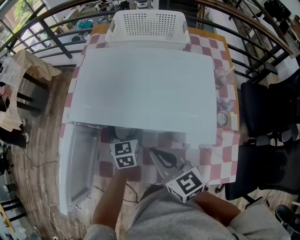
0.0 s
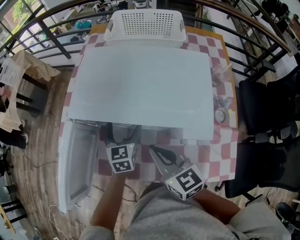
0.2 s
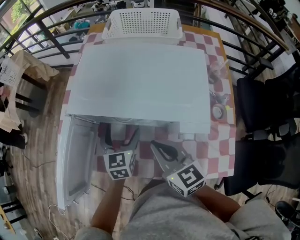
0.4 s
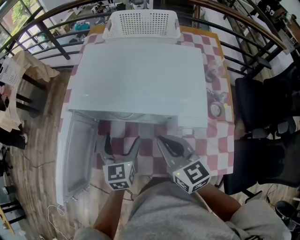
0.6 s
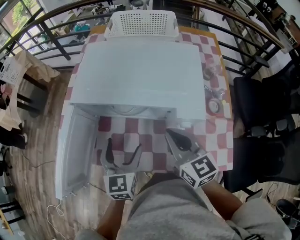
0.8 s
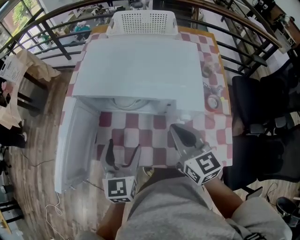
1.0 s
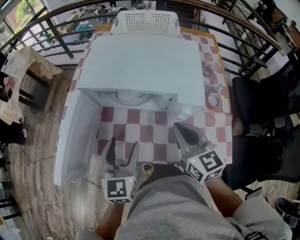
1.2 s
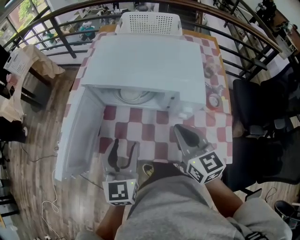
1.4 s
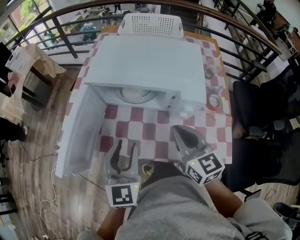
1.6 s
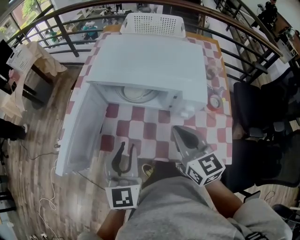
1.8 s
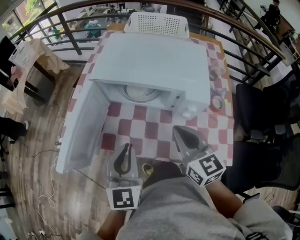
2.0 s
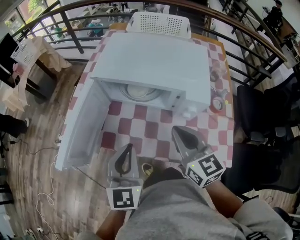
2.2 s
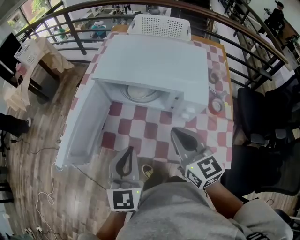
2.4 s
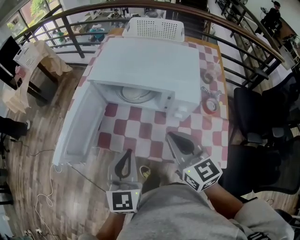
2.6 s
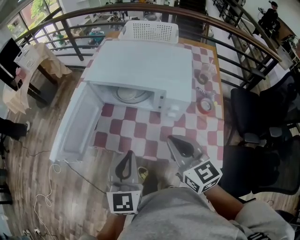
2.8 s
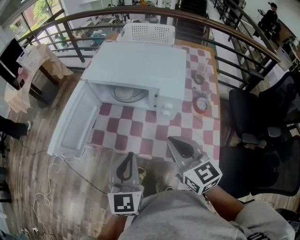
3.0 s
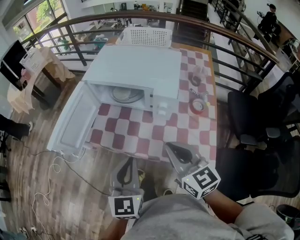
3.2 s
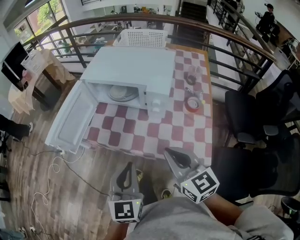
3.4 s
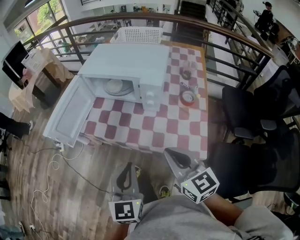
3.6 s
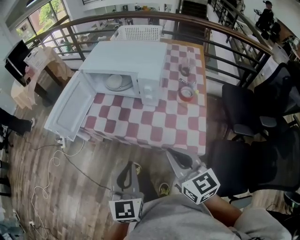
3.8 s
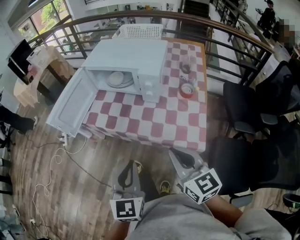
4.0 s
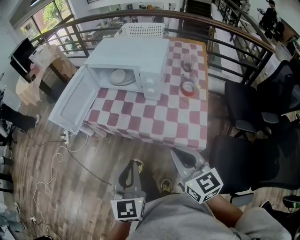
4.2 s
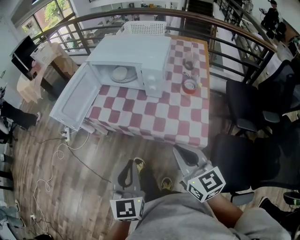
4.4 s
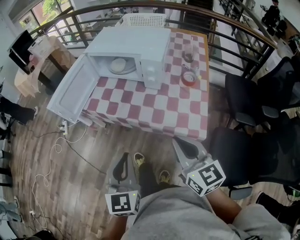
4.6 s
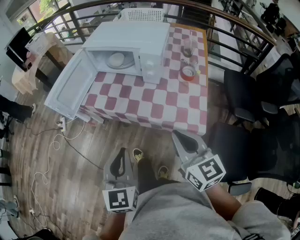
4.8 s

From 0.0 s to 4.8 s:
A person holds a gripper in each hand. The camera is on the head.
From 0.0 s to 1.6 s: The left gripper travels backward and upward by about 30 cm, and closes its fingers. The right gripper heads backward, upward and to the right, covering roughly 10 cm.
From 1.6 s to 3.2 s: The right gripper shifts some 10 cm backward; the left gripper goes about 15 cm backward and to the right.
From 3.2 s to 4.8 s: Both grippers travel together backward, about 15 cm.

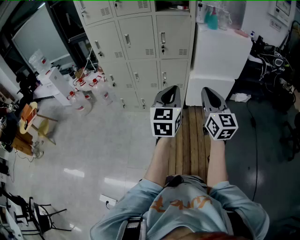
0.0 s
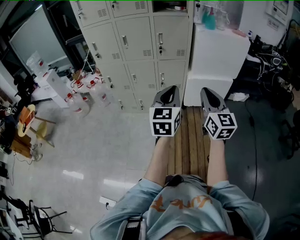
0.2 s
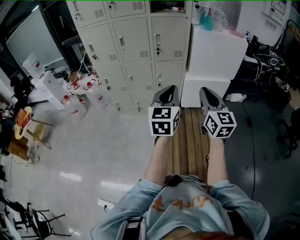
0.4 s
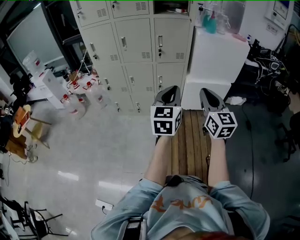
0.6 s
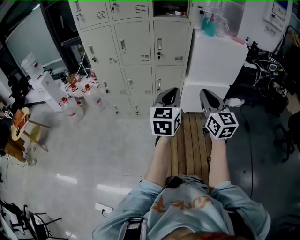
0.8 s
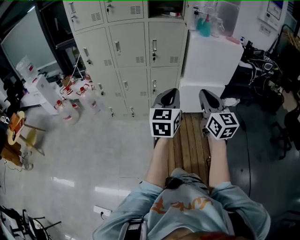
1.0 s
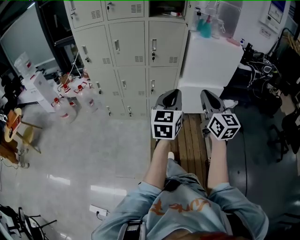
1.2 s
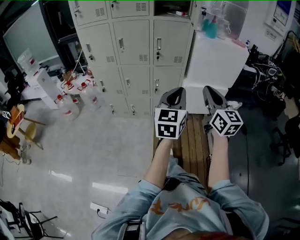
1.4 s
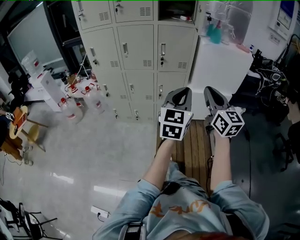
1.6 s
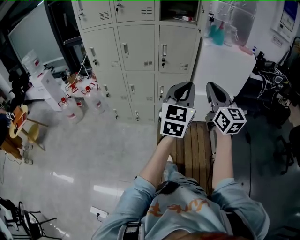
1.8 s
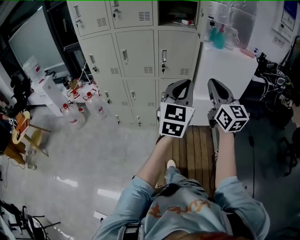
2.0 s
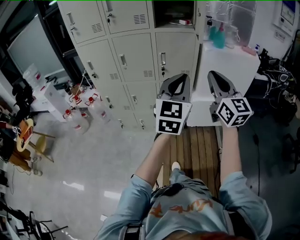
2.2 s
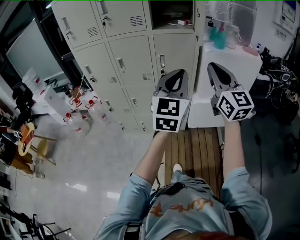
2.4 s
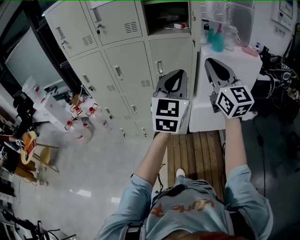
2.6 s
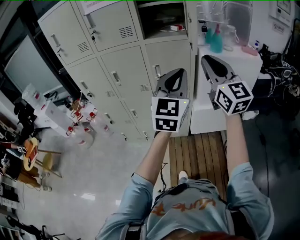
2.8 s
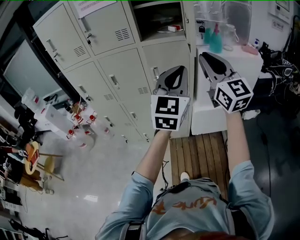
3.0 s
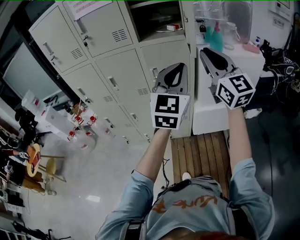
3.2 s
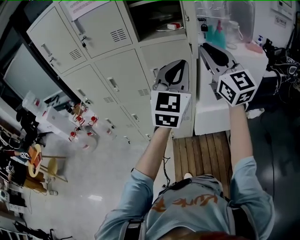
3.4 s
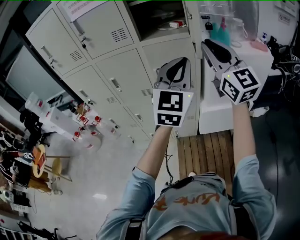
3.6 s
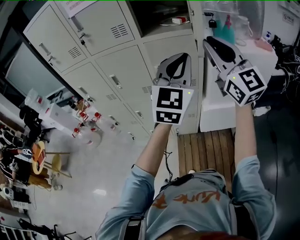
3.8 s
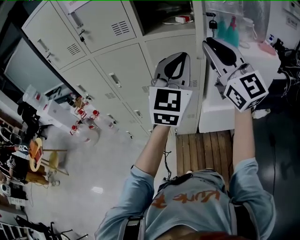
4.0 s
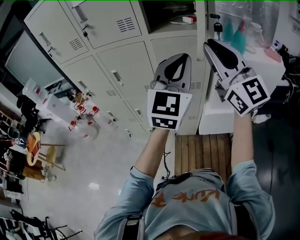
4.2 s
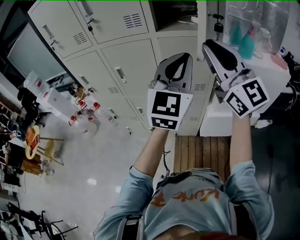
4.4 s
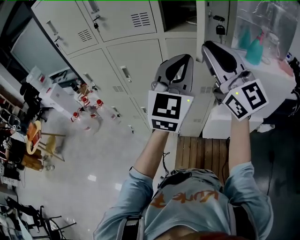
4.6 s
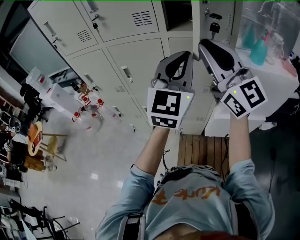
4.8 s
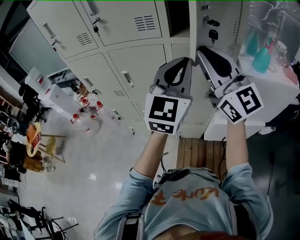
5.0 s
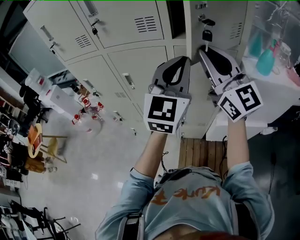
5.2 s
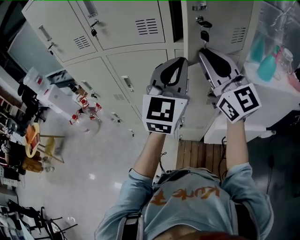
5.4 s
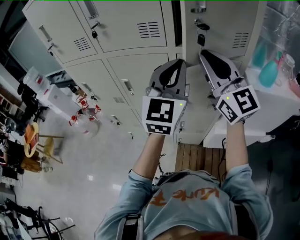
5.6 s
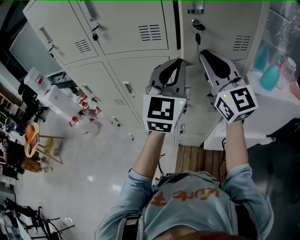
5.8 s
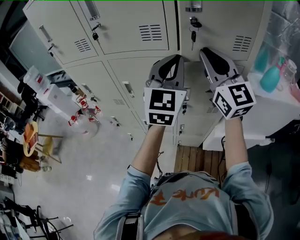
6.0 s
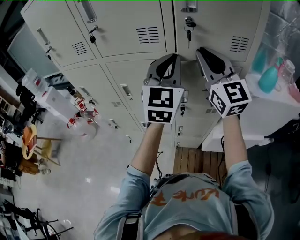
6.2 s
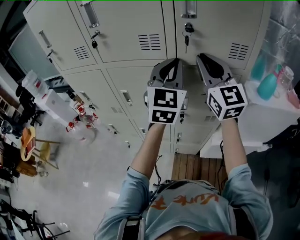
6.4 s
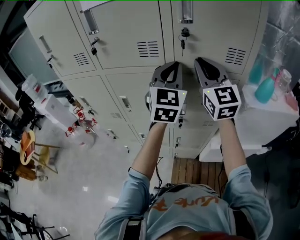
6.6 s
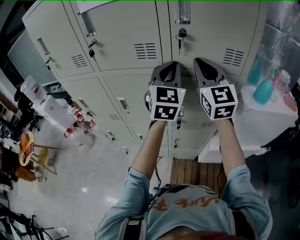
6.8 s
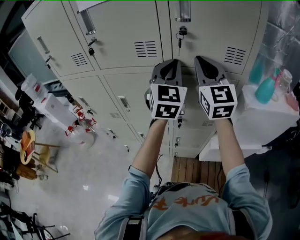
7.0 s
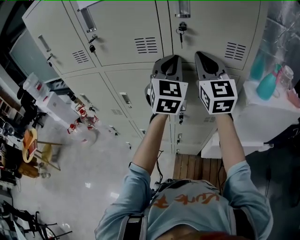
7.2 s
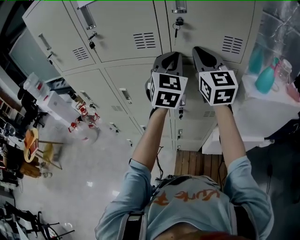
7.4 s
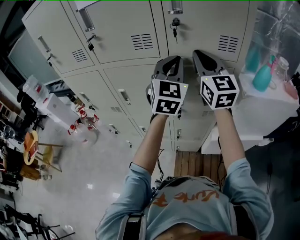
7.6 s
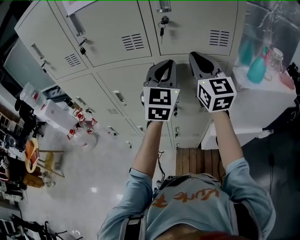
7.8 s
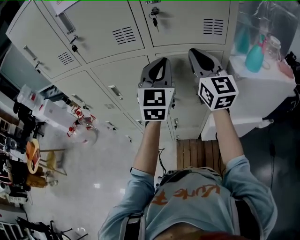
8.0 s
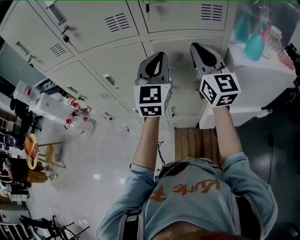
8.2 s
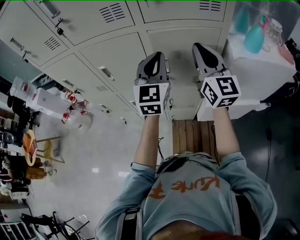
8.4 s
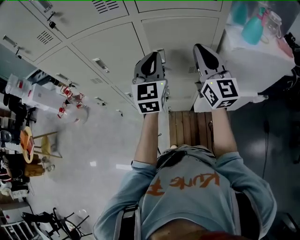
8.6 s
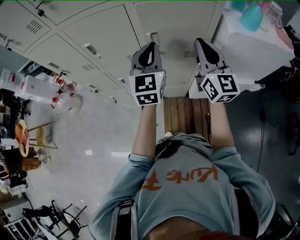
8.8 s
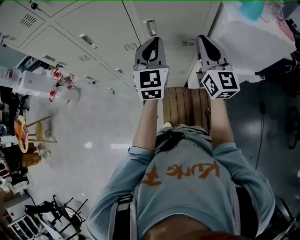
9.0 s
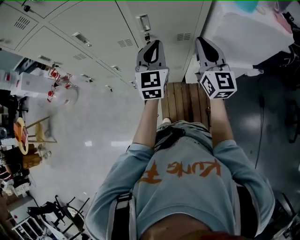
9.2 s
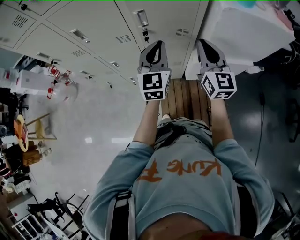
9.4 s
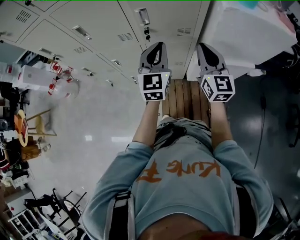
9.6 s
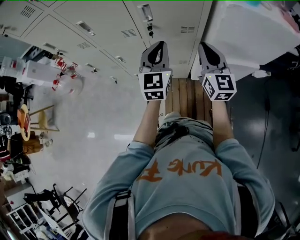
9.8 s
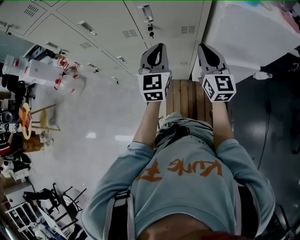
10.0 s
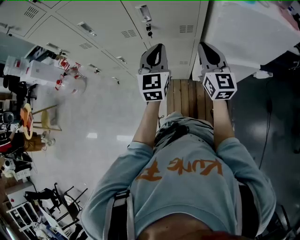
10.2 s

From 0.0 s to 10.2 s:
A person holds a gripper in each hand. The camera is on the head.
From 0.0 s to 1.4 s: Both grippers move forward, about 5 cm.
From 1.4 s to 3.0 s: Both grippers travel together forward and upward, approximately 30 cm. The left gripper swivels roughly 20 degrees.
From 3.0 s to 4.4 s: The left gripper moves forward, about 10 cm; the right gripper shifts some 10 cm forward and to the left.
From 4.4 s to 5.8 s: The left gripper travels forward and to the left by about 15 cm; the right gripper is displaced forward by some 15 cm.
From 5.8 s to 7.2 s: Both grippers travel together forward, about 10 cm.
From 7.2 s to 8.8 s: The right gripper travels downward, backward and to the right by roughly 20 cm, while the left gripper goes about 20 cm downward and backward.
From 8.8 s to 10.2 s: The right gripper heads downward and backward, covering some 15 cm. The left gripper goes roughly 15 cm downward, backward and to the right.

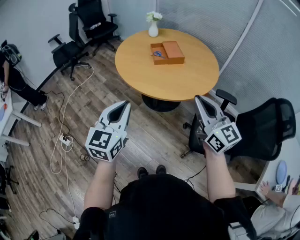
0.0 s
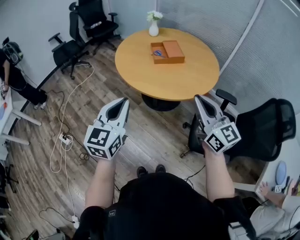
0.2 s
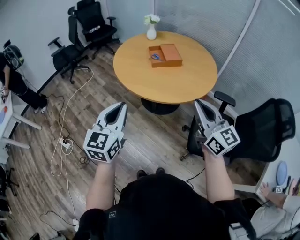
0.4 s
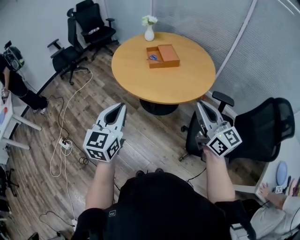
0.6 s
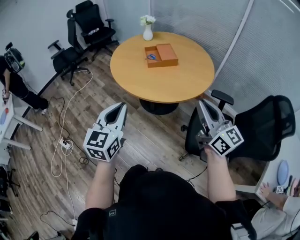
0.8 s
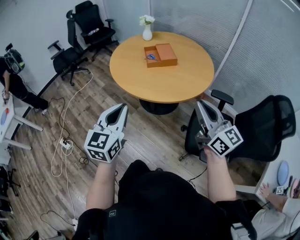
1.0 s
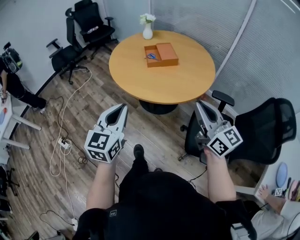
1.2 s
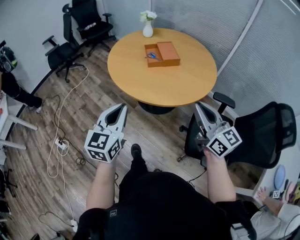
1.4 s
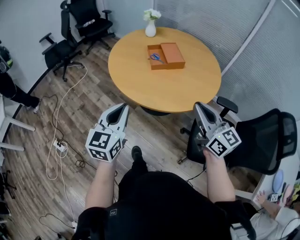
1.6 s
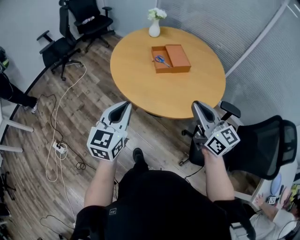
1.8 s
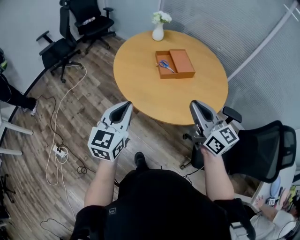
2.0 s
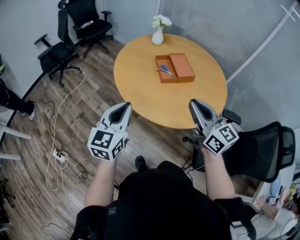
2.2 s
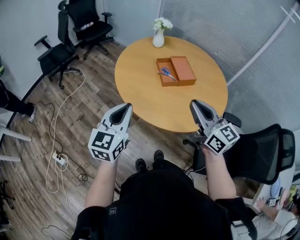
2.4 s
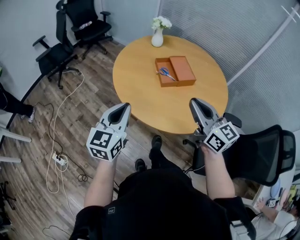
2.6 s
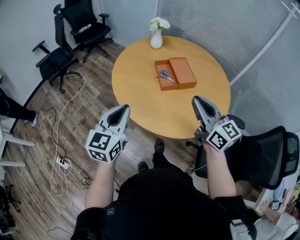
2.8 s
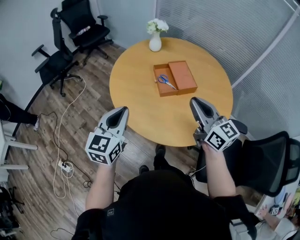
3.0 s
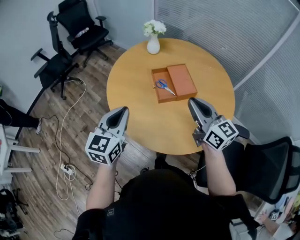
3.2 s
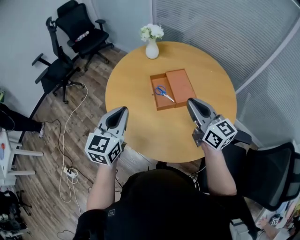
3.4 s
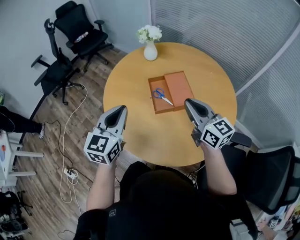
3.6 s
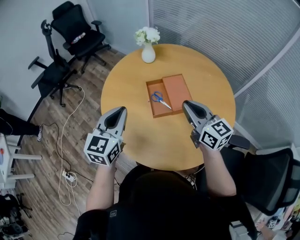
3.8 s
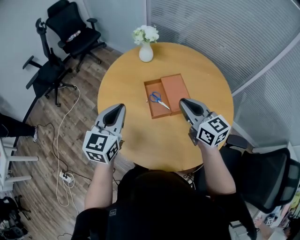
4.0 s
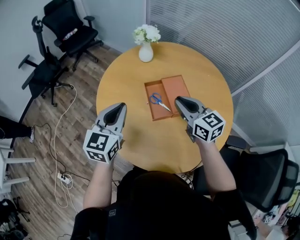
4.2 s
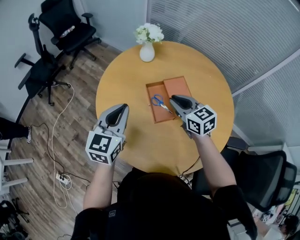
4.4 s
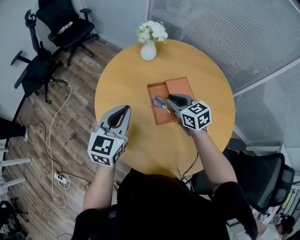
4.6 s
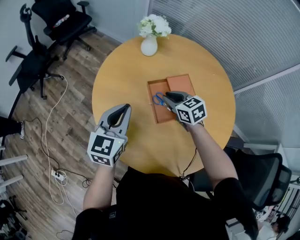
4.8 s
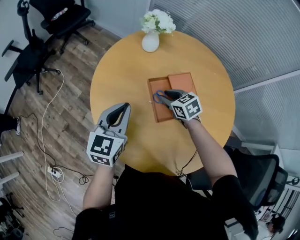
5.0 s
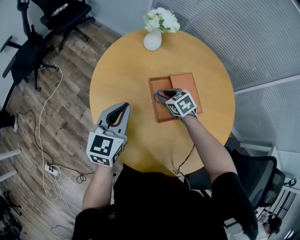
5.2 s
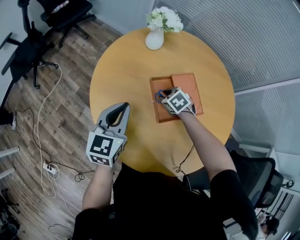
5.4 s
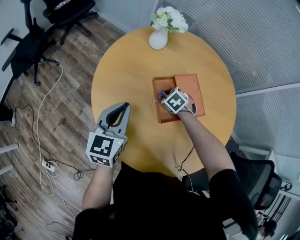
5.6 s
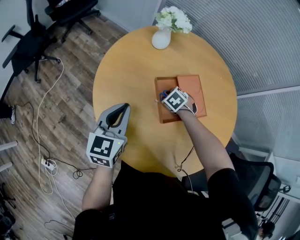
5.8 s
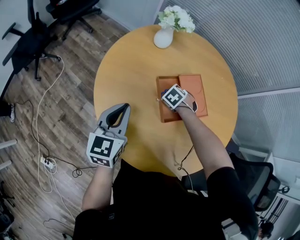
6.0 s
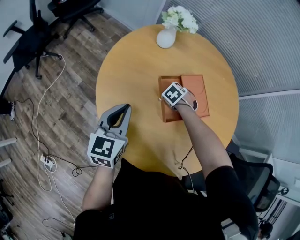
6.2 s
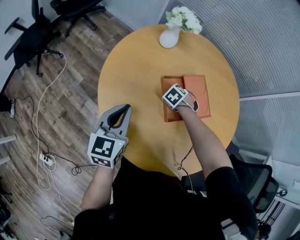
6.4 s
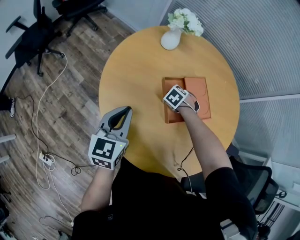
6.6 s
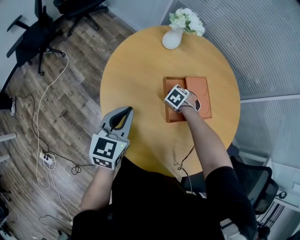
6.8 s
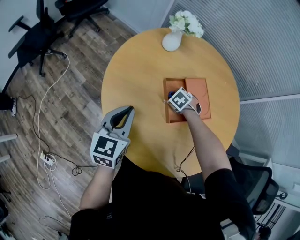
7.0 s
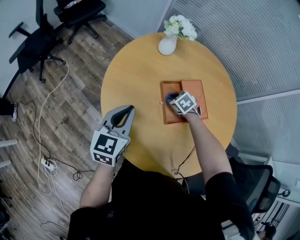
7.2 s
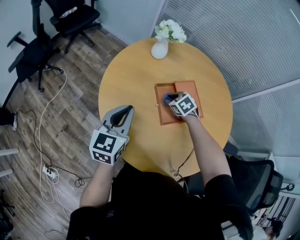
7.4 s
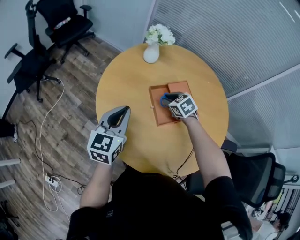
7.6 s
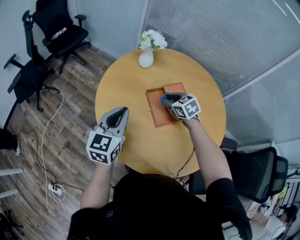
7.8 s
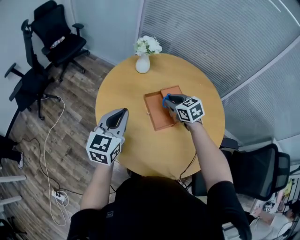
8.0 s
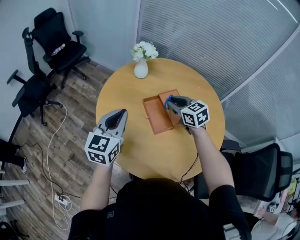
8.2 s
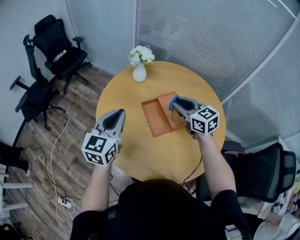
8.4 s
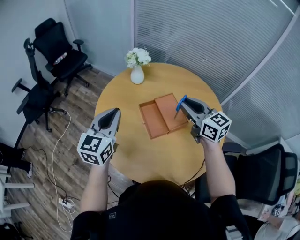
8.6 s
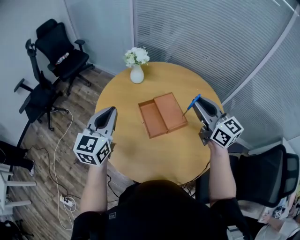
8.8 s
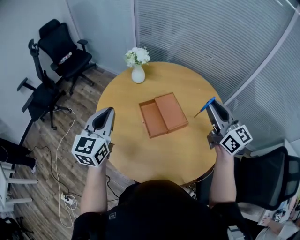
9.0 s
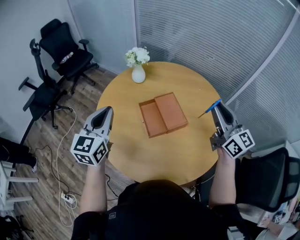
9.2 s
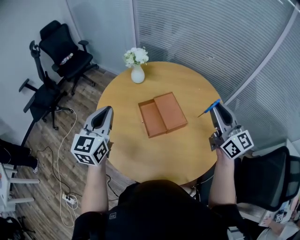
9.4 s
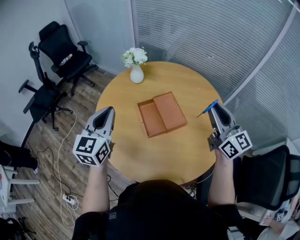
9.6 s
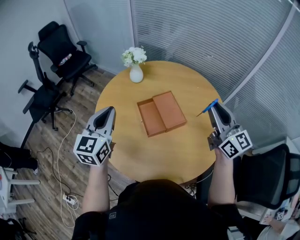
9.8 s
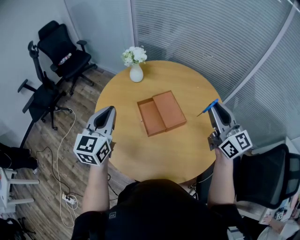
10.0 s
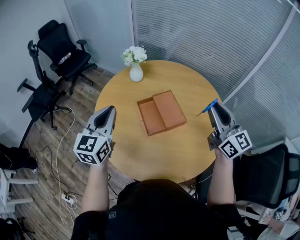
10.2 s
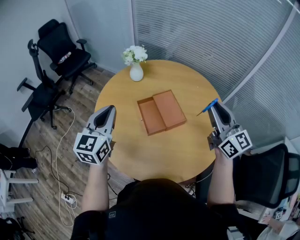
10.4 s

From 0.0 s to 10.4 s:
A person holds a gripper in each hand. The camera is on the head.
From 0.0 s to 1.4 s: The right gripper moves to the right, about 5 cm, while the left gripper is displaced forward by about 5 cm.
From 1.4 s to 3.0 s: Both grippers move forward, about 30 cm.
From 3.0 s to 4.4 s: The right gripper shifts roughly 30 cm forward and downward, and changes its angle by about 20 degrees; the left gripper travels forward by approximately 25 cm.
From 4.4 s to 6.0 s: The right gripper travels downward by roughly 25 cm, and tips its fingers downward by about 60 degrees. The left gripper is displaced downward by some 10 cm.
From 6.0 s to 7.4 s: The right gripper shifts approximately 10 cm upward, and swivels some 20 degrees.
From 7.4 s to 9.0 s: The left gripper shifts approximately 15 cm upward and to the right. The right gripper is displaced upward, to the right and backward by about 40 cm, and points its fingers some 70 degrees further upward.
From 9.0 s to 10.4 s: The grippers make only small movements.
